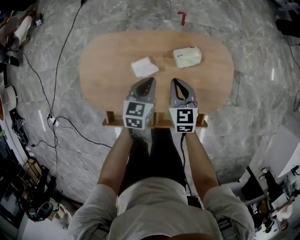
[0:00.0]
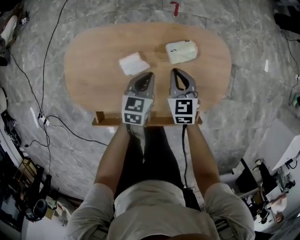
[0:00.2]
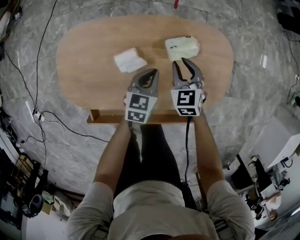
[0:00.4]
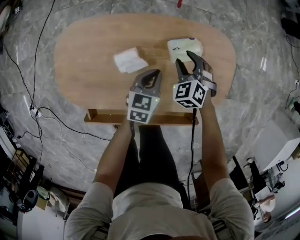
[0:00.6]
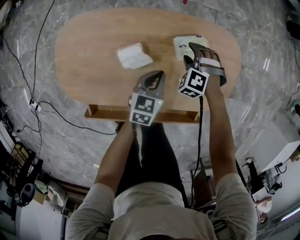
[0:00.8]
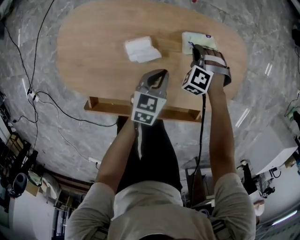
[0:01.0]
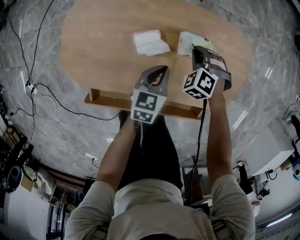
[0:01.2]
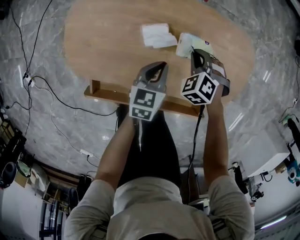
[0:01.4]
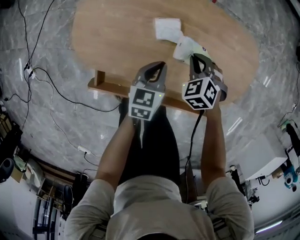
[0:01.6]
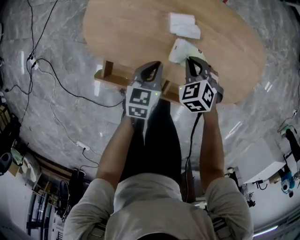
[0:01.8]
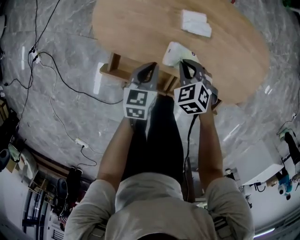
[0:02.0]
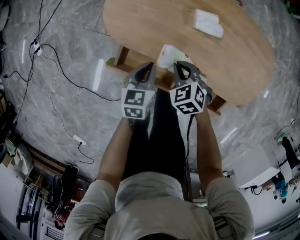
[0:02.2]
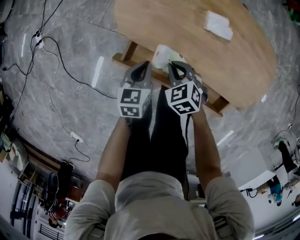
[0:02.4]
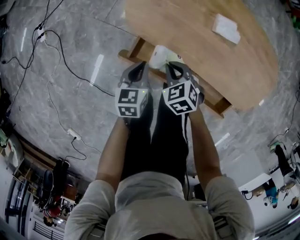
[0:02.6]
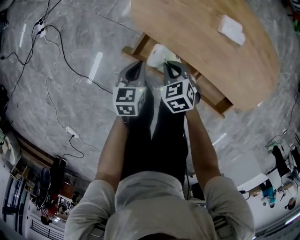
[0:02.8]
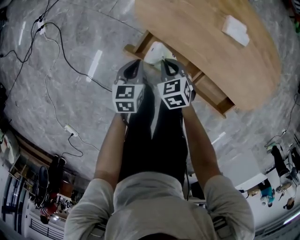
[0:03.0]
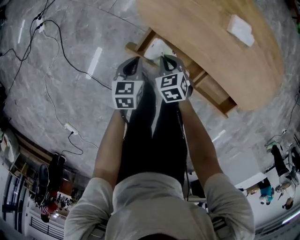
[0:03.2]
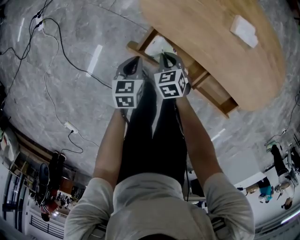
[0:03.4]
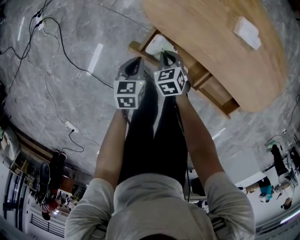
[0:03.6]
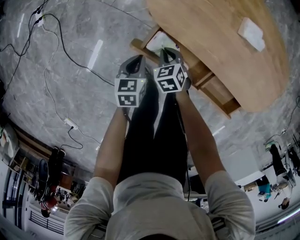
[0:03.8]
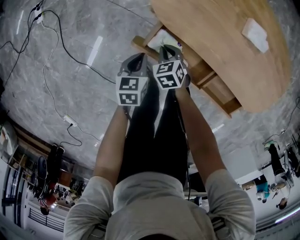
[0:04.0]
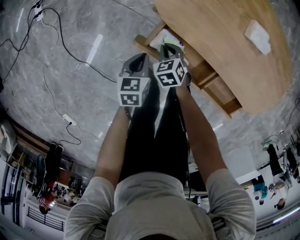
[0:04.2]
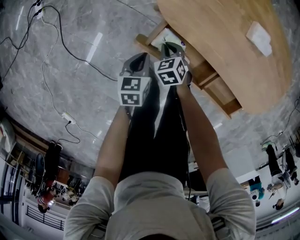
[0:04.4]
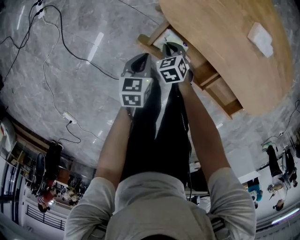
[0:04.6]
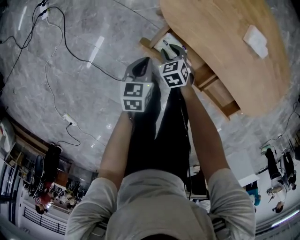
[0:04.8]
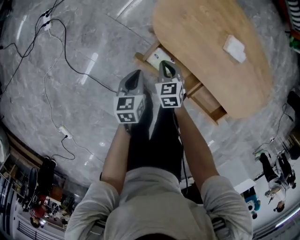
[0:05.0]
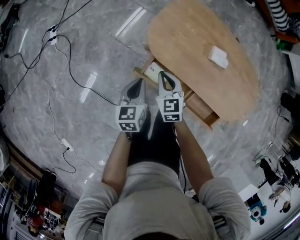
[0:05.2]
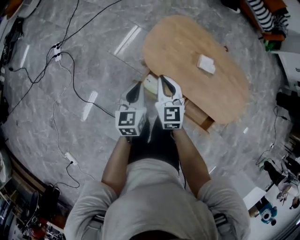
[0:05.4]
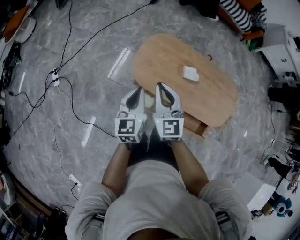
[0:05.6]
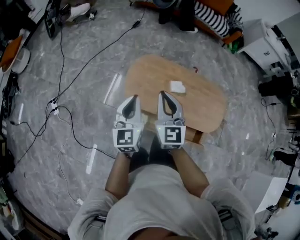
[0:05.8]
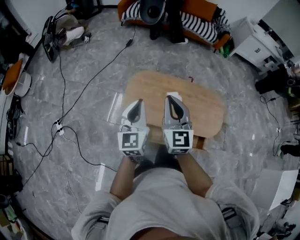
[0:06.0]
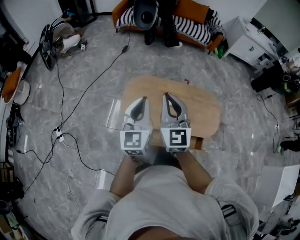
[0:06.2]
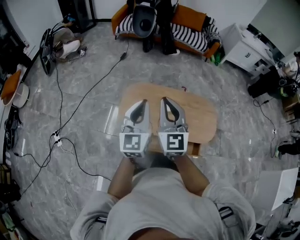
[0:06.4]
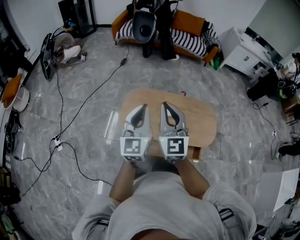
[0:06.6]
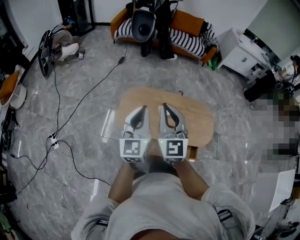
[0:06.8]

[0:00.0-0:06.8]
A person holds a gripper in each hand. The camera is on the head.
0:00.0 to 0:01.4: The two grippers go approximately 10 cm downward. The right gripper twists approximately 60 degrees counterclockwise, seen from behind, and opens, then closes again.
0:01.4 to 0:02.8: The left gripper ends up roughly 40 cm from where it was, and rotates roughly 30 degrees; the right gripper shifts by about 40 cm, and rotates roughly 30 degrees.
0:02.8 to 0:04.0: The two grippers go some 15 cm downward and to the left.
0:04.0 to 0:05.4: The two grippers go roughly 35 cm upward. The right gripper tips its fingers upward by approximately 40 degrees, and opens, then closes again. Meanwhile the left gripper swivels approximately 30 degrees.
0:05.4 to 0:06.8: The two grippers go about 35 cm upward. The right gripper swivels roughly 40 degrees. Meanwhile the left gripper tips its fingers upward by about 30 degrees.

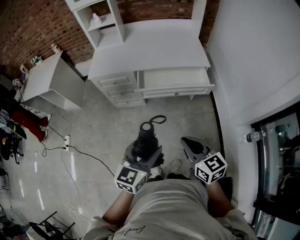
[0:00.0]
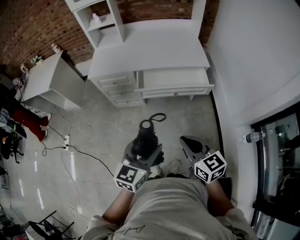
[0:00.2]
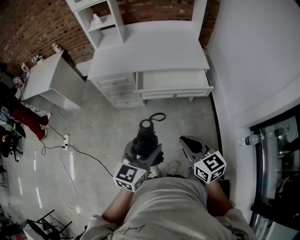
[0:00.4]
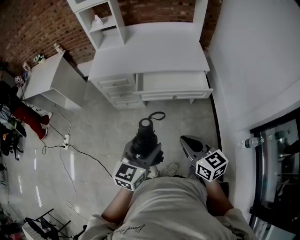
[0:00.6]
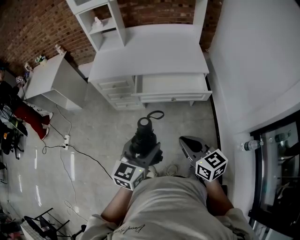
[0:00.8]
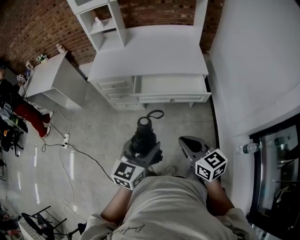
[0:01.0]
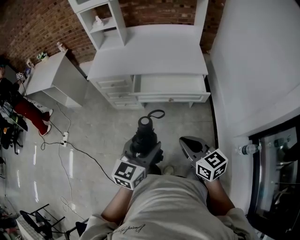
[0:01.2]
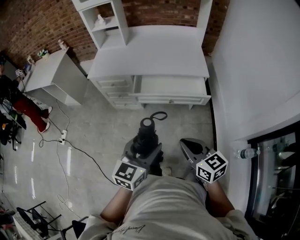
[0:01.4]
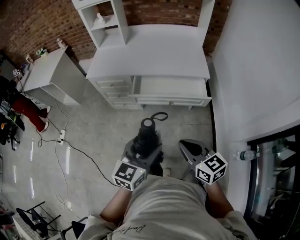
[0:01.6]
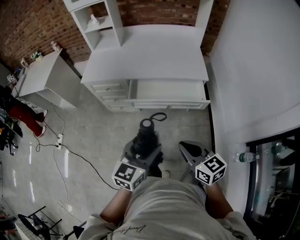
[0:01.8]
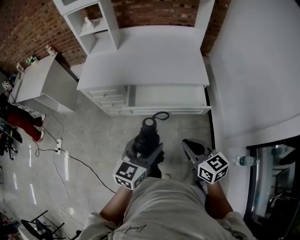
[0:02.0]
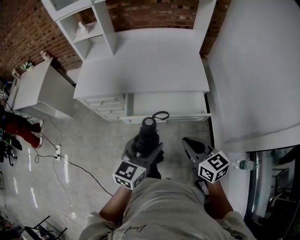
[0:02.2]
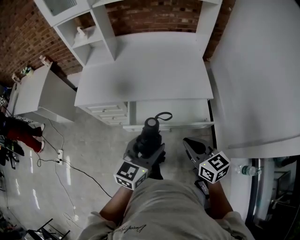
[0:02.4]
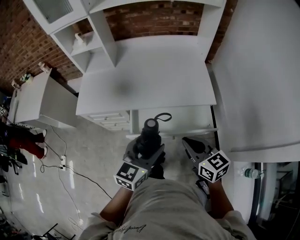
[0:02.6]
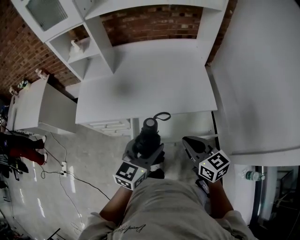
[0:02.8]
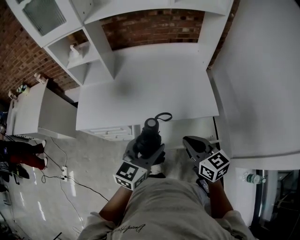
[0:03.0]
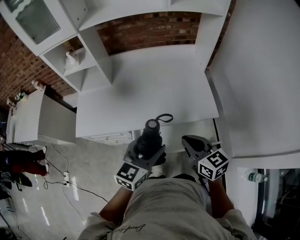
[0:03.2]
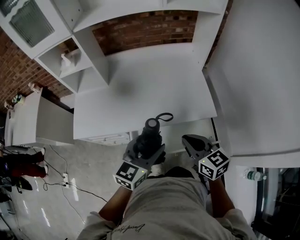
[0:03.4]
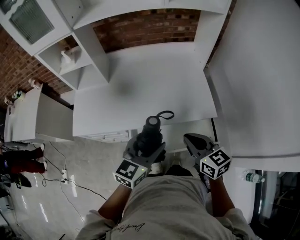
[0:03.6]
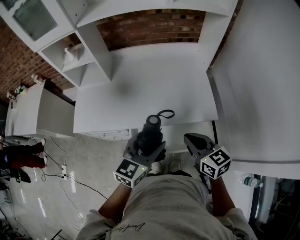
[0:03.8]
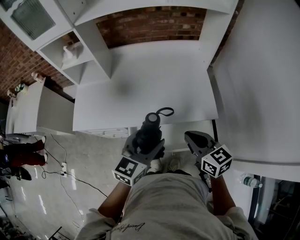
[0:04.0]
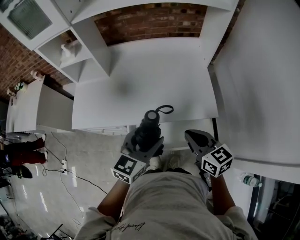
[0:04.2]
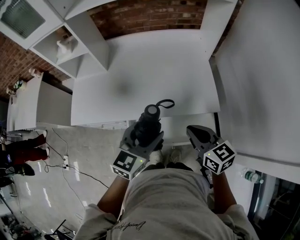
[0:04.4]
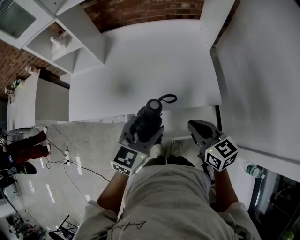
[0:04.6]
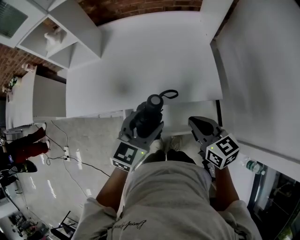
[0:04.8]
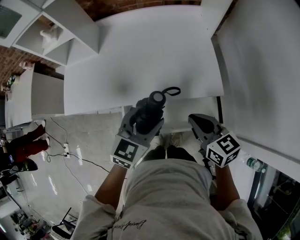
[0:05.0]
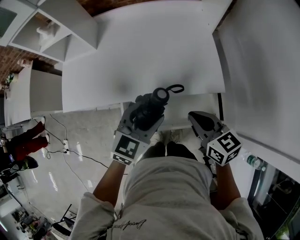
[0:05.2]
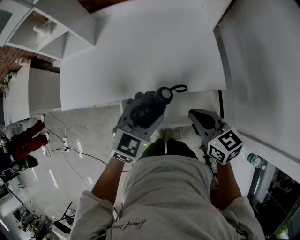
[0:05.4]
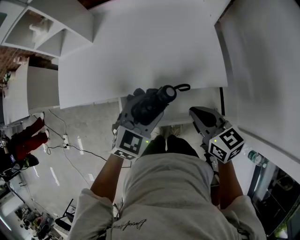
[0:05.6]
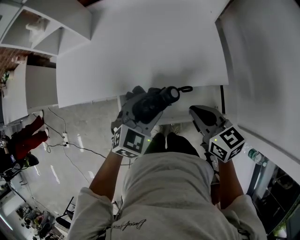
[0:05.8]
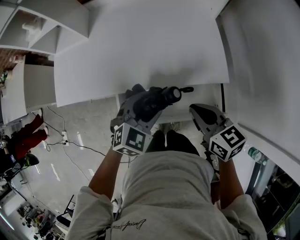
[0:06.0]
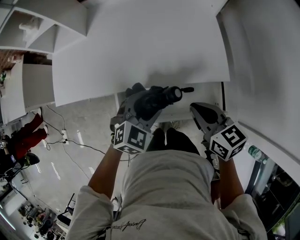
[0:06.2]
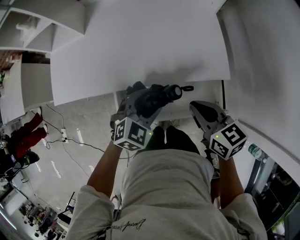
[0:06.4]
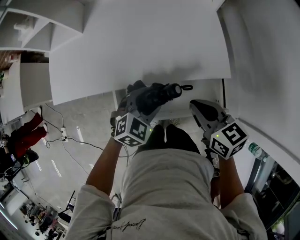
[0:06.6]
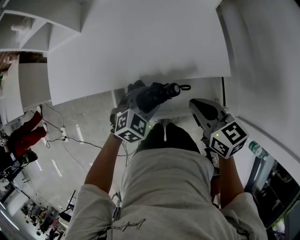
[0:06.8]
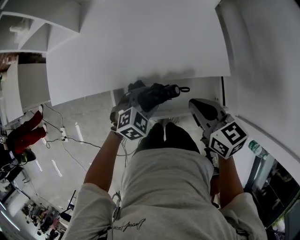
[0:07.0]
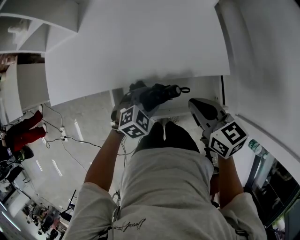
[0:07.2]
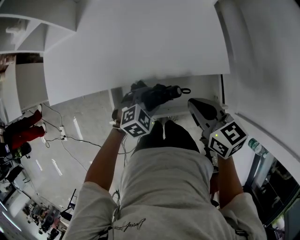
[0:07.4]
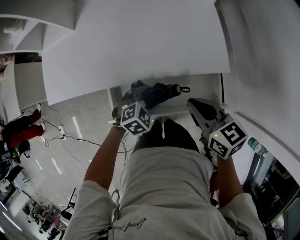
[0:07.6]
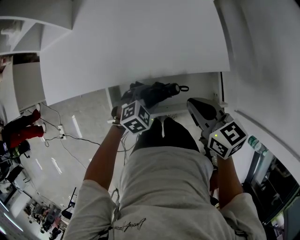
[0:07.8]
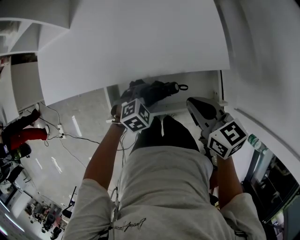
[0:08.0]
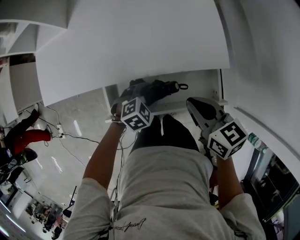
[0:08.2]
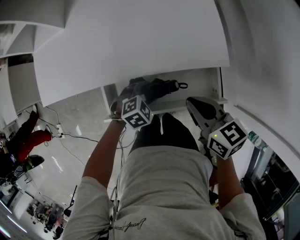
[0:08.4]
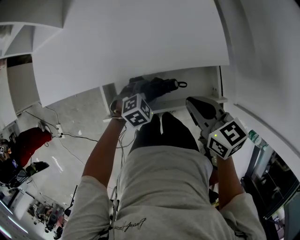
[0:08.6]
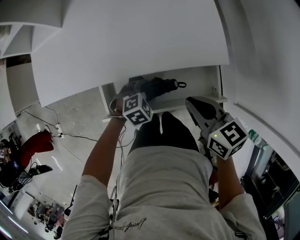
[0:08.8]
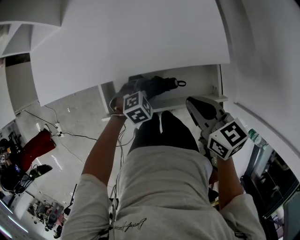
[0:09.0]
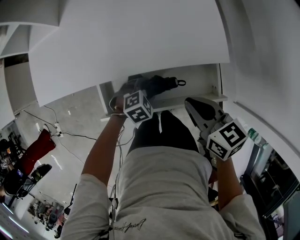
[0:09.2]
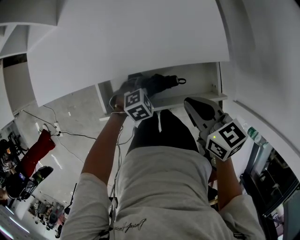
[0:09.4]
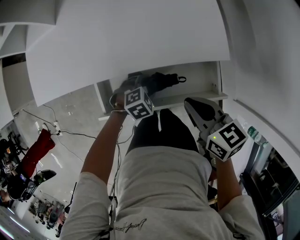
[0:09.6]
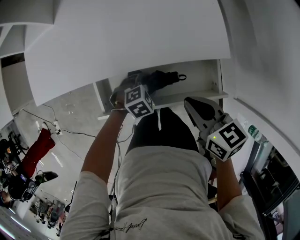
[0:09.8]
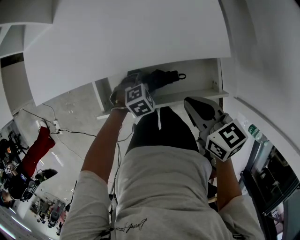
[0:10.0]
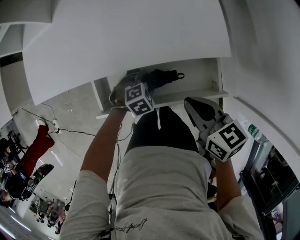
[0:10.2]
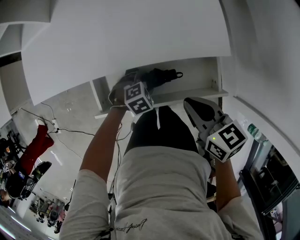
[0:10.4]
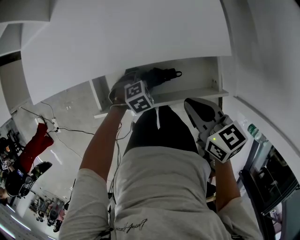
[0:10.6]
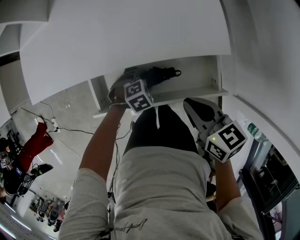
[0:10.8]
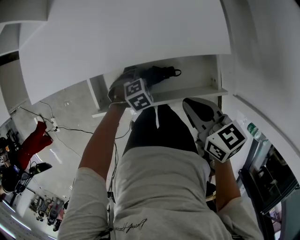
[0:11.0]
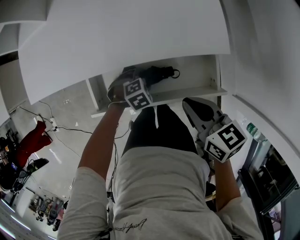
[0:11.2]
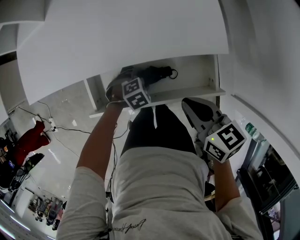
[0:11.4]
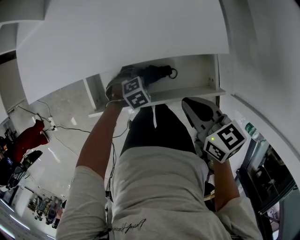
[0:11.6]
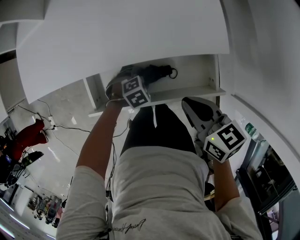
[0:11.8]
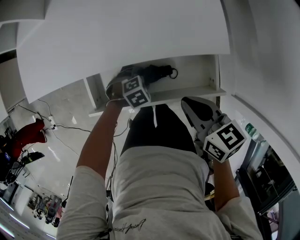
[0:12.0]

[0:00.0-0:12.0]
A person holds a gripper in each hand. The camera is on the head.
0:00.0 to 0:01.6: The left gripper shifts about 10 cm to the right and forward, while the right gripper travels to the right by roughly 10 cm.
0:01.6 to 0:03.0: Both grippers move forward, about 40 cm.
0:03.0 to 0:04.4: The left gripper goes some 10 cm forward. Meanwhile the right gripper travels forward and to the right by some 10 cm.
0:04.4 to 0:06.0: The left gripper moves downward, approximately 15 cm, and changes its angle by approximately 30 degrees, while the right gripper is displaced downward by about 10 cm.
0:06.0 to 0:07.6: The left gripper shifts approximately 15 cm downward, and swivels approximately 20 degrees.
0:07.6 to 0:09.0: The left gripper goes approximately 5 cm downward.
0:09.0 to 0:10.4: The grippers make only small movements.
0:10.4 to 0:12.0: The grippers stay close to where they were, moving slightly.

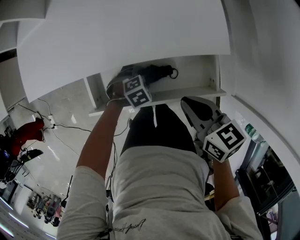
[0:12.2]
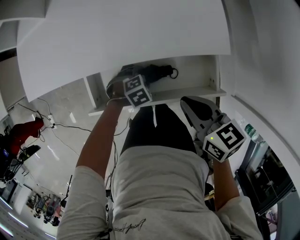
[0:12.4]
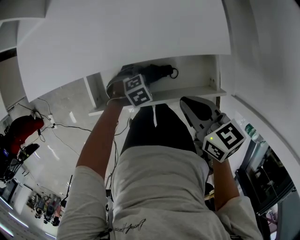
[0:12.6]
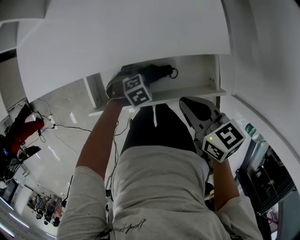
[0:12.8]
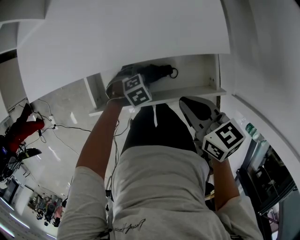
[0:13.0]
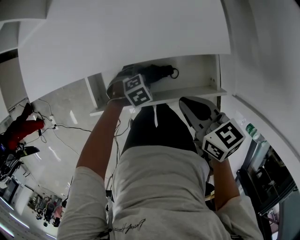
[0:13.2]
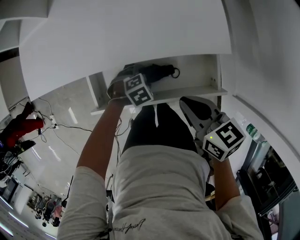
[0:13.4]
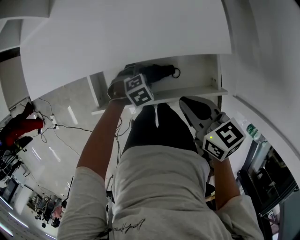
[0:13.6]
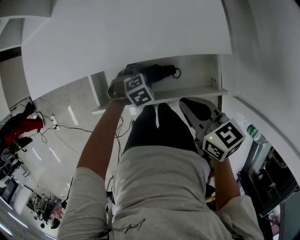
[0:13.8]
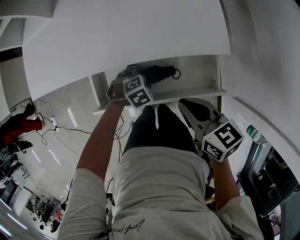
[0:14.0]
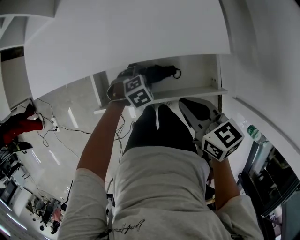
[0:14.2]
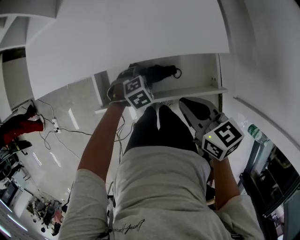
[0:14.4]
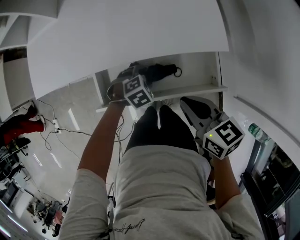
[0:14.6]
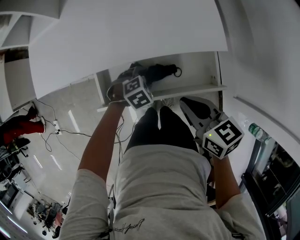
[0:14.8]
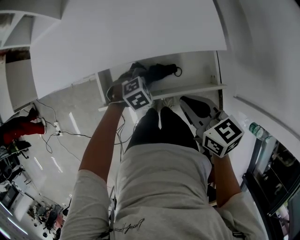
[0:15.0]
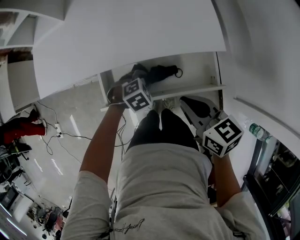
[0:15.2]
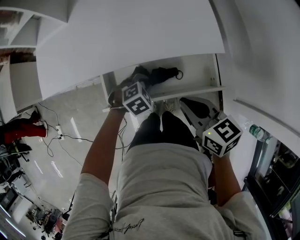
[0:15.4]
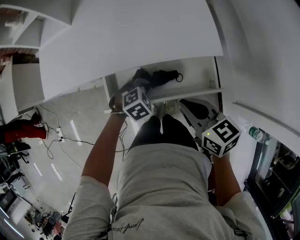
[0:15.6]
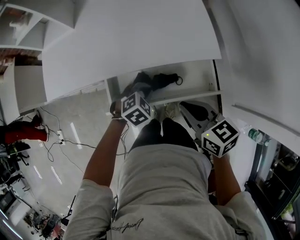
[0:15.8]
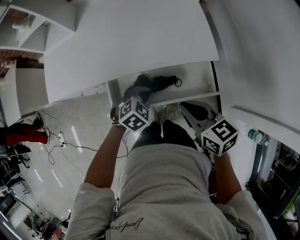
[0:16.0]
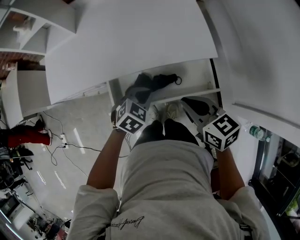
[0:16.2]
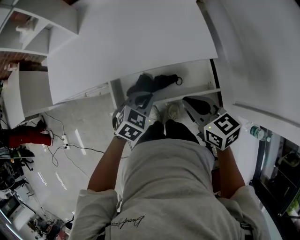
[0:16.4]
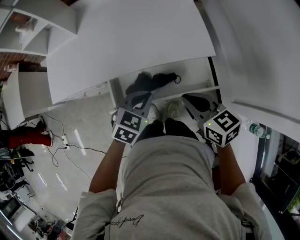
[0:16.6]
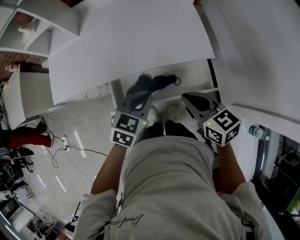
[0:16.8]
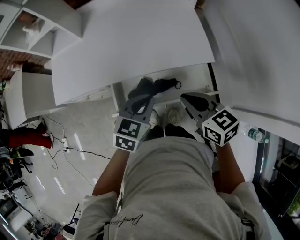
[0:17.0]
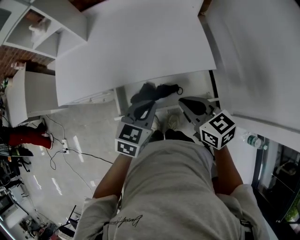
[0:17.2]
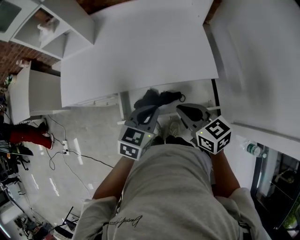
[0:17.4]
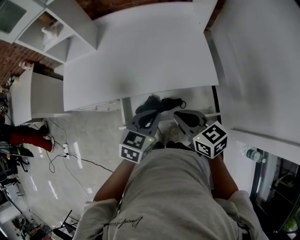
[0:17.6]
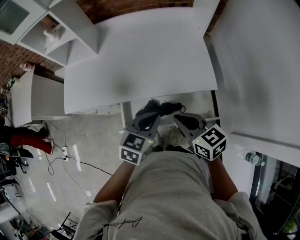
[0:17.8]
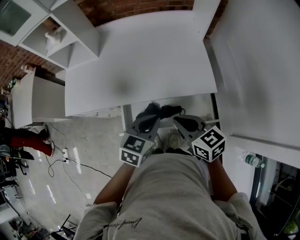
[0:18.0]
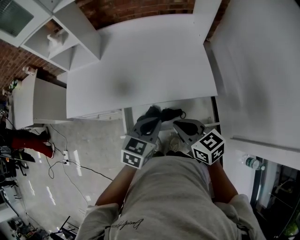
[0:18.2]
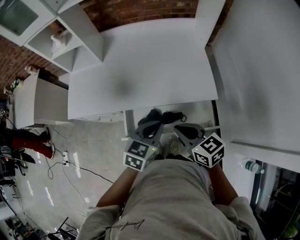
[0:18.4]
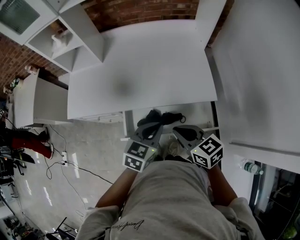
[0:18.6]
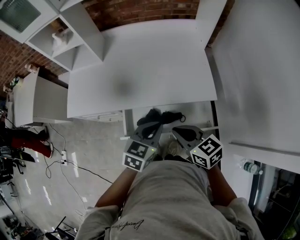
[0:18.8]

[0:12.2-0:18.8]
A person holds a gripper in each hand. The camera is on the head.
0:12.2 to 0:13.8: The grippers stay close to where they were, moving slightly.
0:13.8 to 0:15.4: The left gripper shifts approximately 5 cm upward, and closes.
0:15.4 to 0:17.2: The left gripper travels upward by roughly 20 cm, and tips its fingers upward by about 30 degrees; the right gripper travels upward by approximately 5 cm.
0:17.2 to 0:18.8: There are only small adjustments of the grippers.
